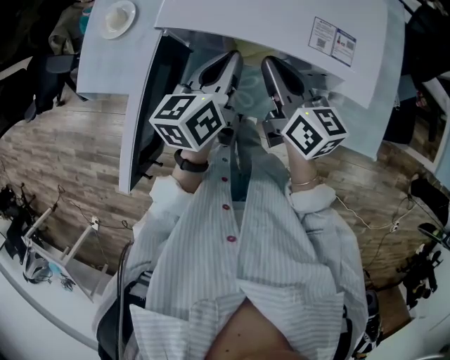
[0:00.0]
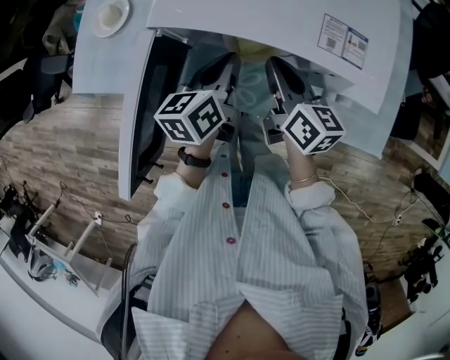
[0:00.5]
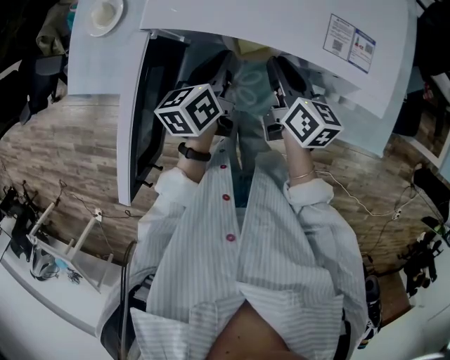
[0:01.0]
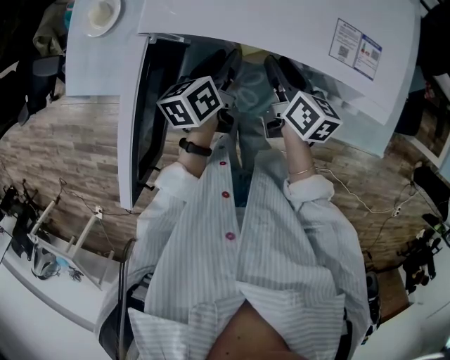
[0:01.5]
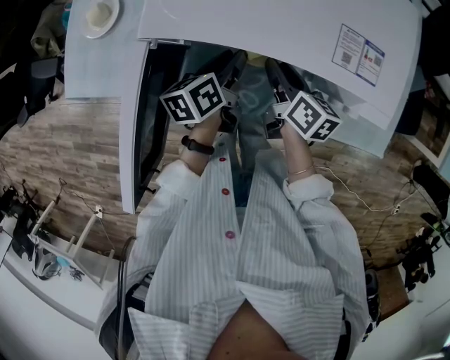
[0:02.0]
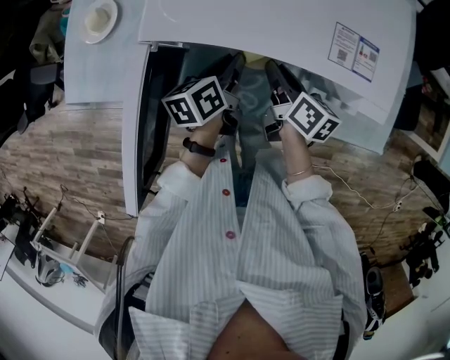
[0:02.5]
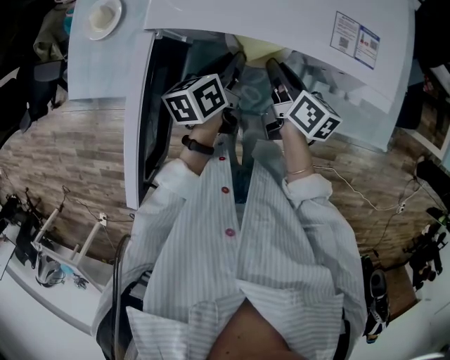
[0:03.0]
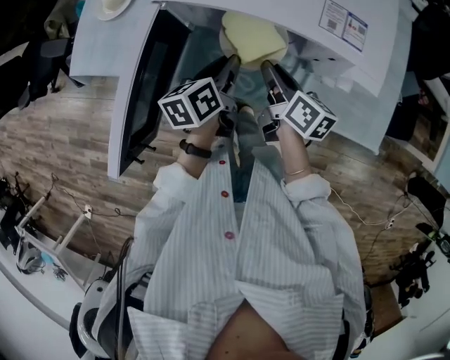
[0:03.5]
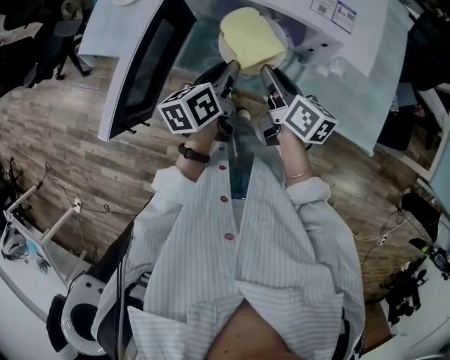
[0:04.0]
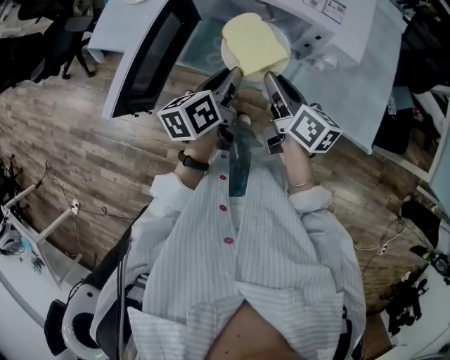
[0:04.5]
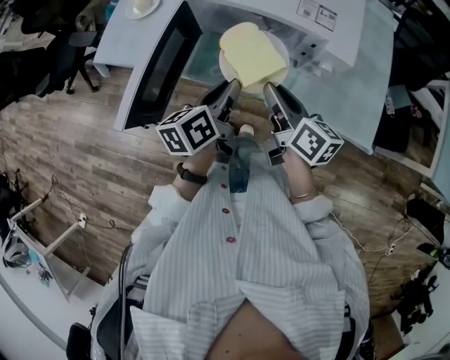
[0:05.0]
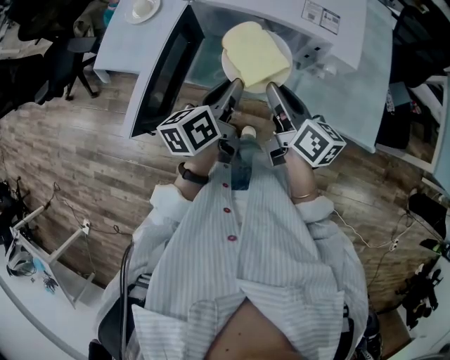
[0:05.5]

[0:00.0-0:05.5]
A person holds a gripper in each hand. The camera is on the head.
0:00.0 to 0:02.0: Both grippers travel together downward, about 15 cm. The right gripper turns by some 20 degrees, and opens. Meanwhile the left gripper changes its angle by approximately 20 degrees, and opens.
0:02.0 to 0:03.5: Both grippers move backward, about 5 cm.
0:03.5 to 0:05.5: The grippers both shift upward and backward by roughly 15 cm.

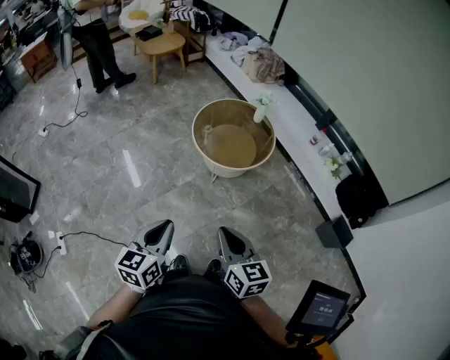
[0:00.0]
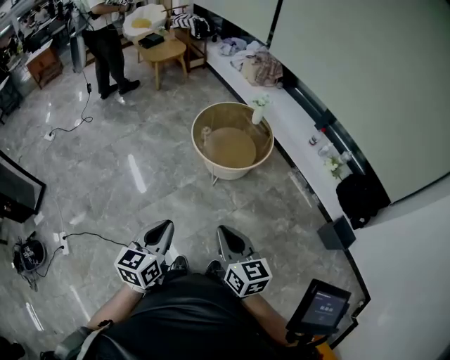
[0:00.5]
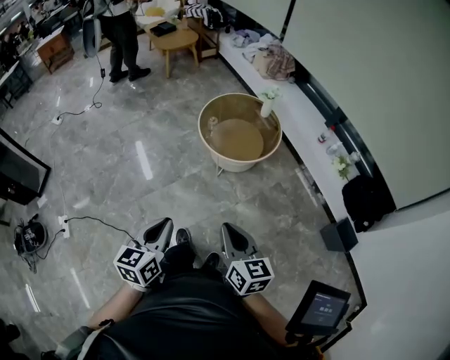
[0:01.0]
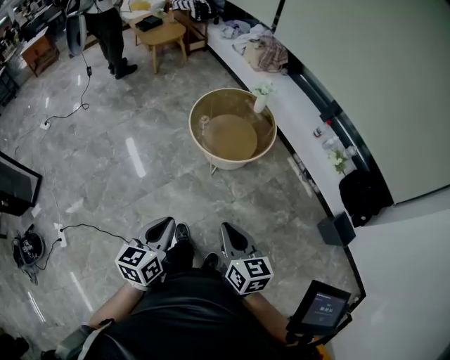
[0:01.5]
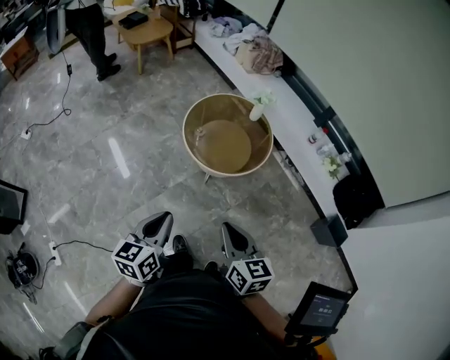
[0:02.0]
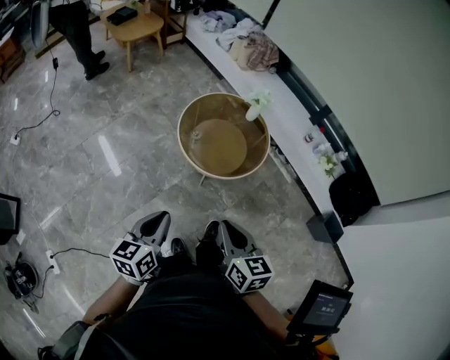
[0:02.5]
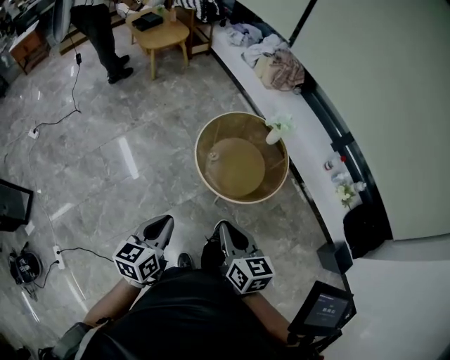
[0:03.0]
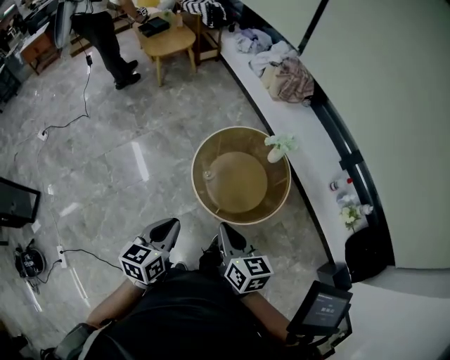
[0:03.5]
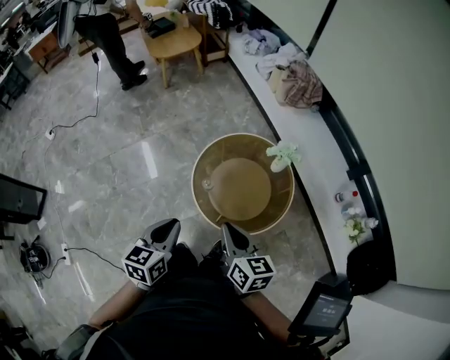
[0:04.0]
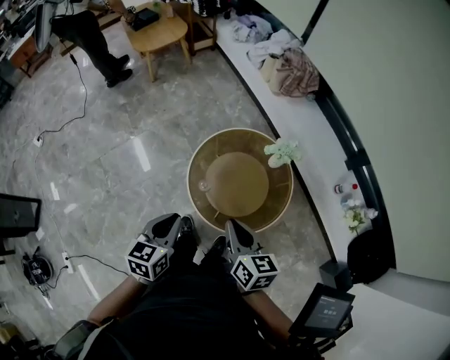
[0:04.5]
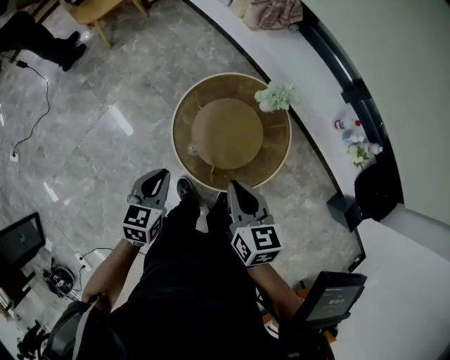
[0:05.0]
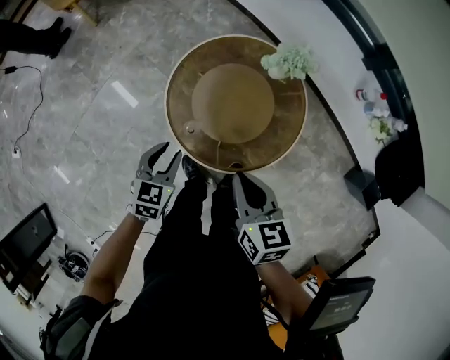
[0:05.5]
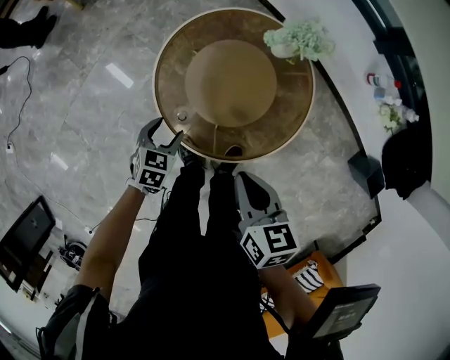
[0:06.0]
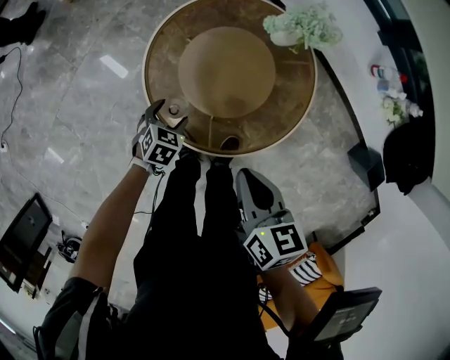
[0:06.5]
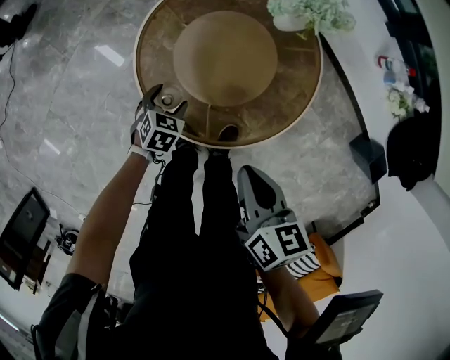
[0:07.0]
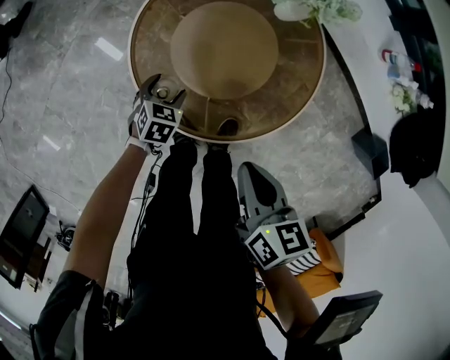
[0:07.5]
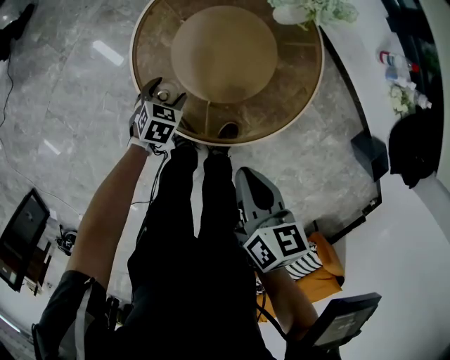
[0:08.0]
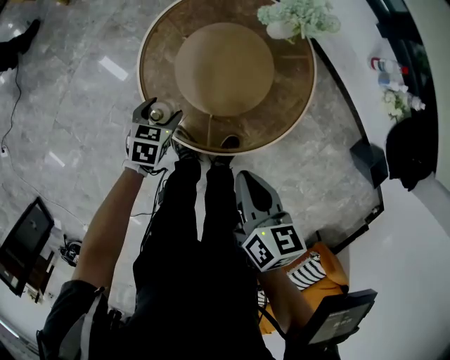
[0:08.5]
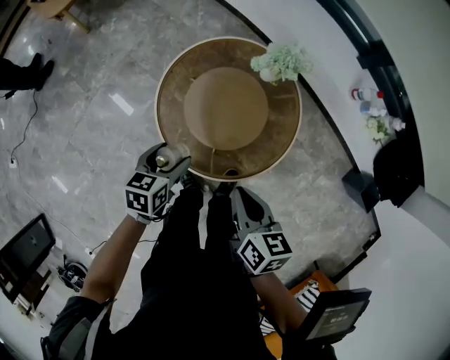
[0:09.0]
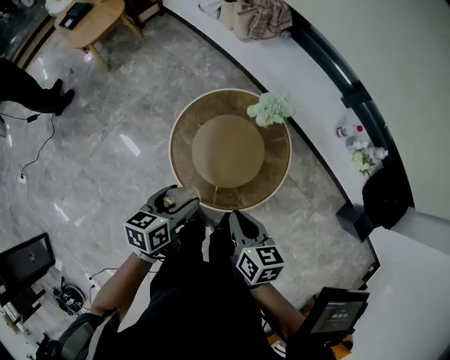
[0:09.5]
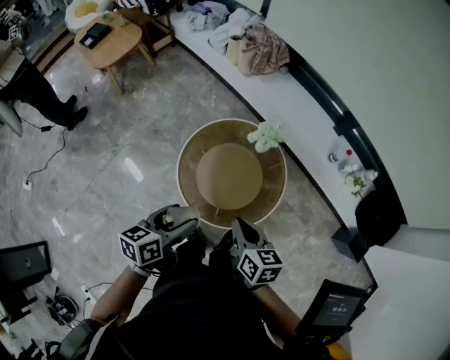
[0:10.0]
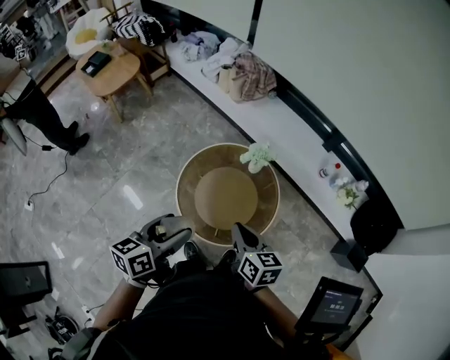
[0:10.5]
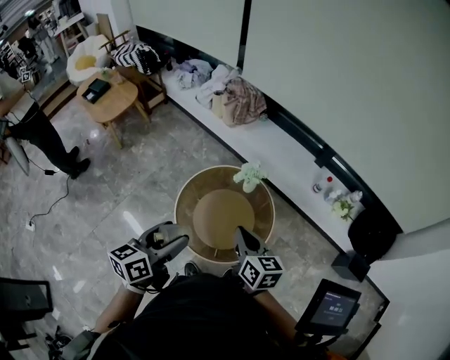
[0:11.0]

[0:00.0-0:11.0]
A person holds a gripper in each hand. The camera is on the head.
0:00.0 to 0:02.0: Both grippers move forward, some 15 cm.
0:02.0 to 0:03.5: The grippers both shift forward by some 25 cm.
0:03.5 to 0:05.5: The left gripper shifts some 35 cm downward and forward, changes its angle by approximately 40 degrees, and opens its fingers. The right gripper heads forward and downward, covering approximately 25 cm, and rotates about 20 degrees.
0:05.5 to 0:07.5: The left gripper travels downward by roughly 25 cm, swivels approximately 20 degrees, and opens. The right gripper shifts some 10 cm downward.
0:07.5 to 0:09.0: The left gripper travels upward by about 20 cm, and rotates roughly 30 degrees. The right gripper heads upward, covering about 5 cm.
0:09.0 to 0:11.0: The right gripper moves upward, some 20 cm, and rotates approximately 20 degrees. The left gripper travels upward by some 35 cm, and tilts its fingers about 30 degrees upward.

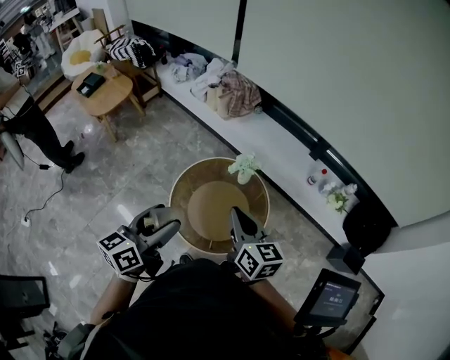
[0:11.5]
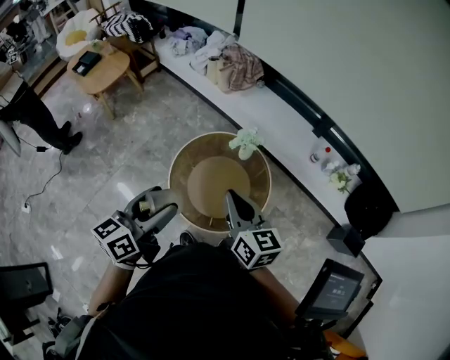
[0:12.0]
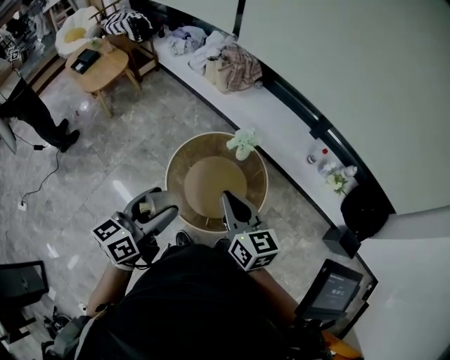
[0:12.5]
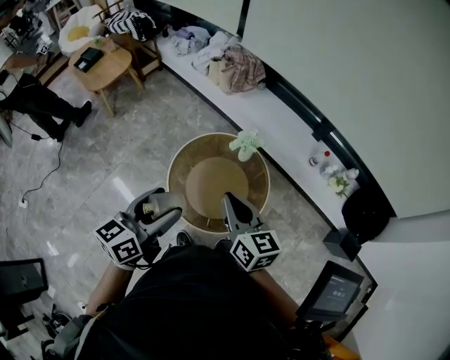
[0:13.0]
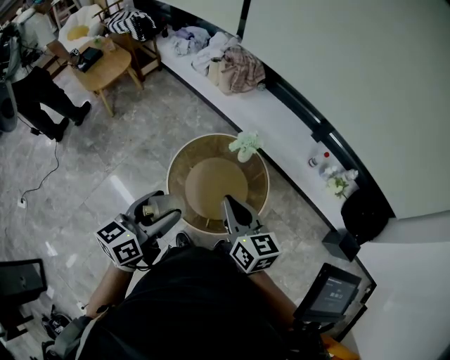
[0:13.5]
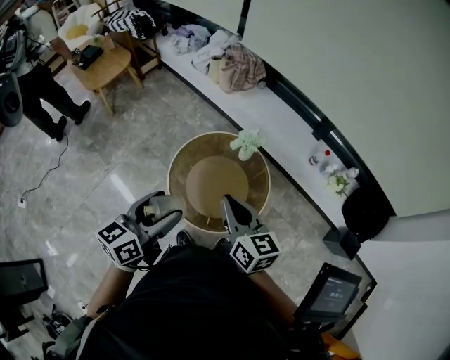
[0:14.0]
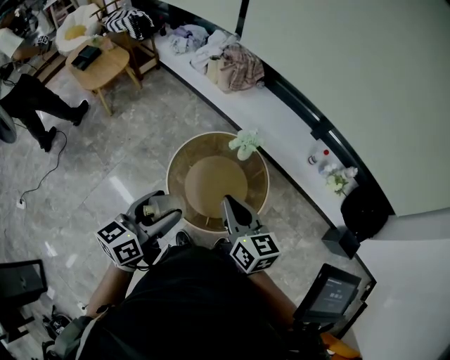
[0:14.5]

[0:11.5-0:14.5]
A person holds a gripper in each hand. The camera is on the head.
0:11.5 to 0:13.0: The grippers stay close to where they were, moving slightly.
0:13.0 to 0:14.5: Neither gripper changes place.

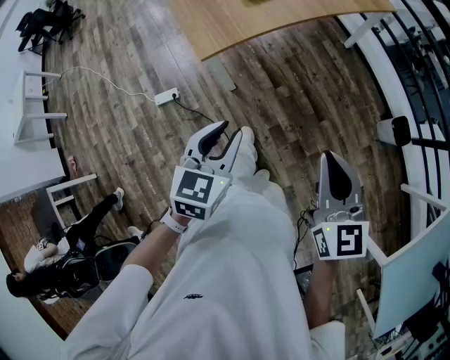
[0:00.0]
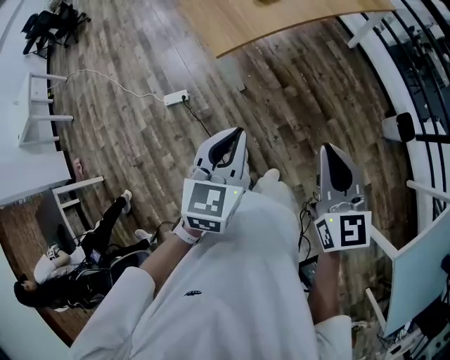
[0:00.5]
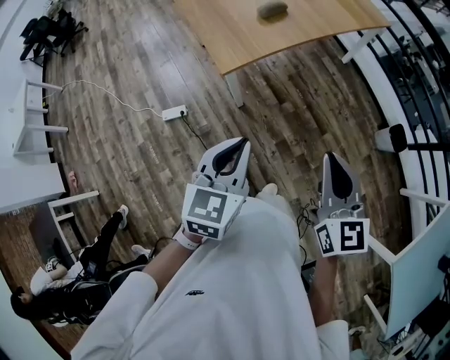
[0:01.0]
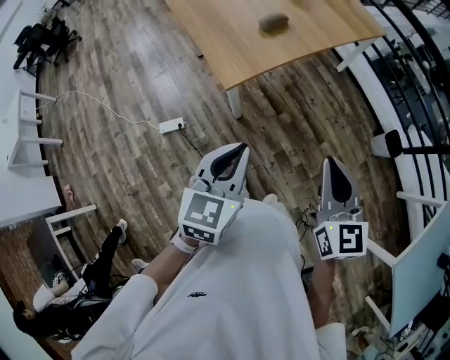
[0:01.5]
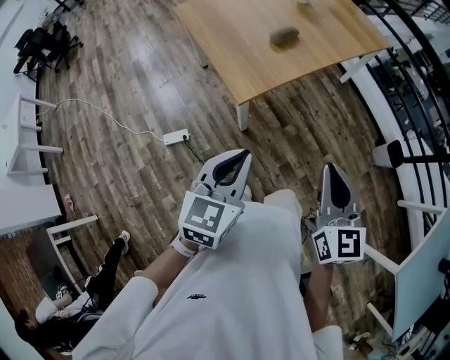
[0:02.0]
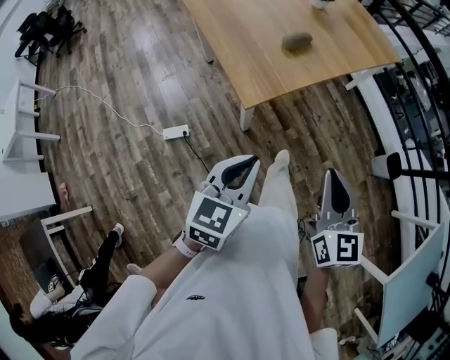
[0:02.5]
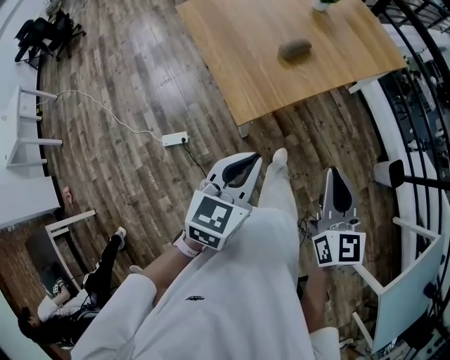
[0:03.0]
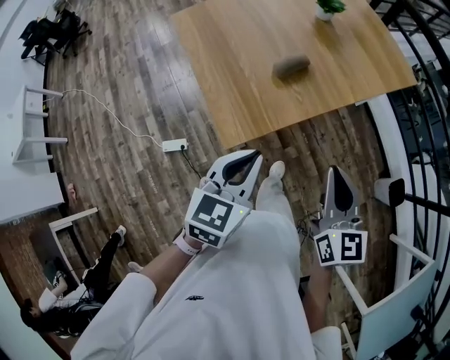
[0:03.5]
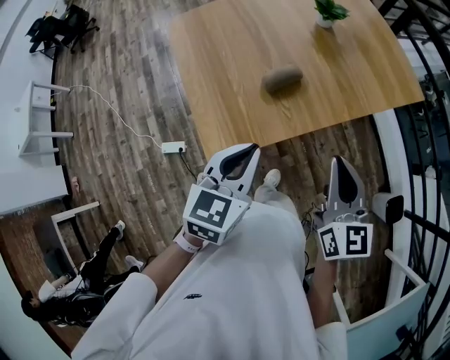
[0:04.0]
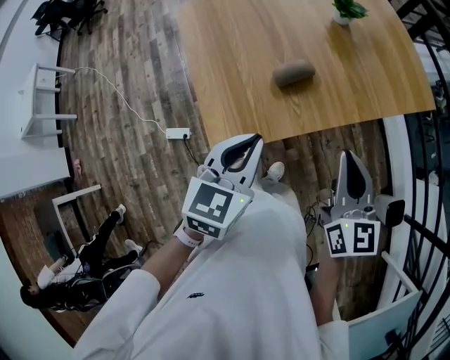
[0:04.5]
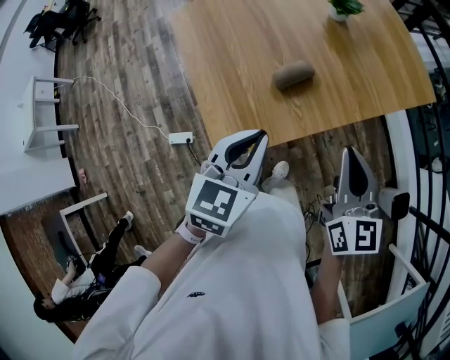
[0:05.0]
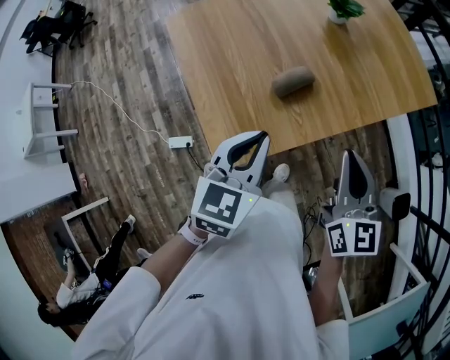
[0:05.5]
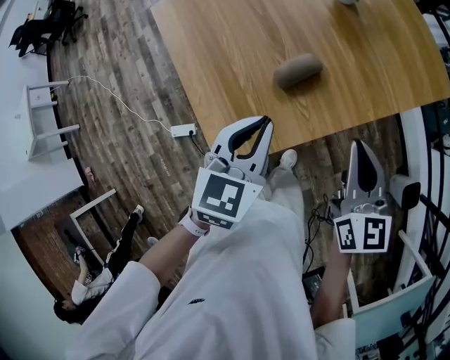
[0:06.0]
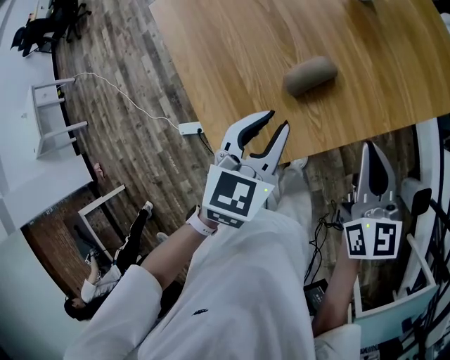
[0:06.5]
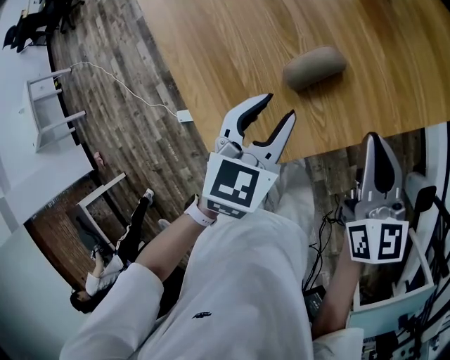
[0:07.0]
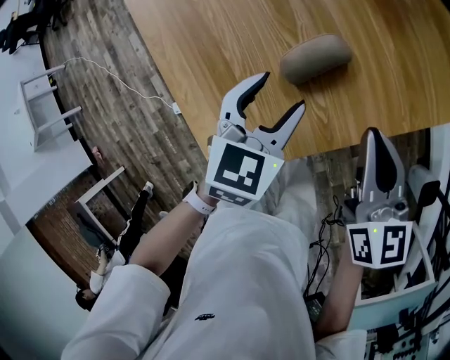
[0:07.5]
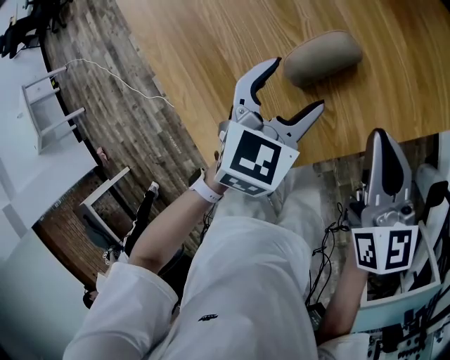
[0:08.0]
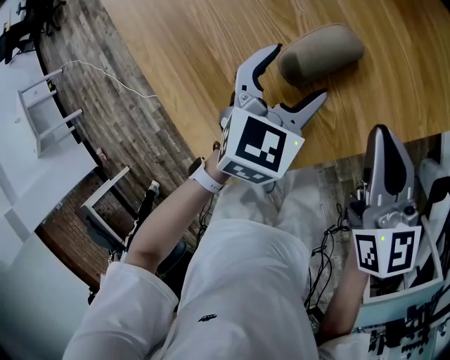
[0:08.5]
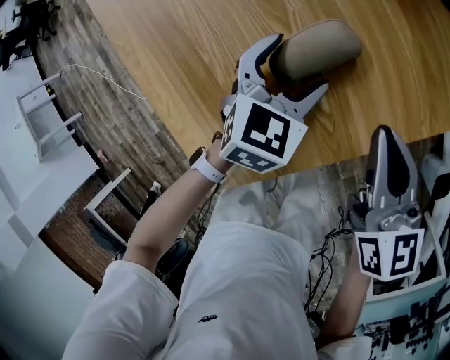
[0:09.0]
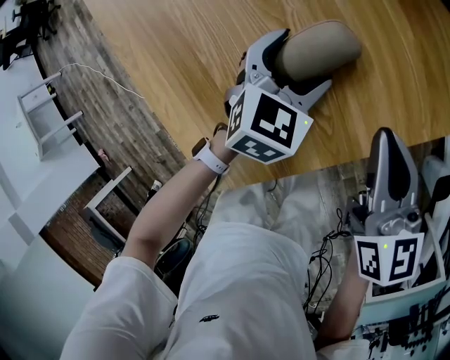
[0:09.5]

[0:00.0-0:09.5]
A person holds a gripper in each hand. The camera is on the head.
0:00.0 to 0:02.0: The left gripper heads to the left and upward, covering some 20 cm, while the right gripper moves to the left, about 20 cm.
0:02.0 to 0:04.0: Both grippers travel together forward, some 40 cm.
0:04.0 to 0:05.5: Both grippers move forward, approximately 10 cm.
0:05.5 to 0:07.5: Both grippers travel together downward and forward, approximately 25 cm. The left gripper opens.
0:07.5 to 0:09.5: The left gripper heads downward and forward, covering approximately 15 cm; the right gripper moves downward, about 5 cm.
